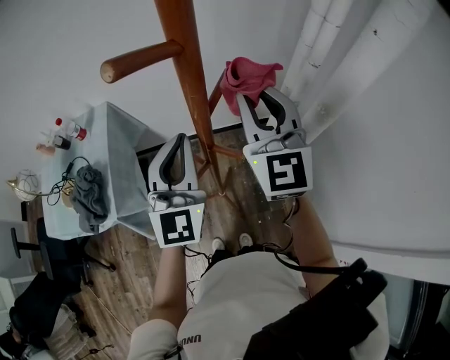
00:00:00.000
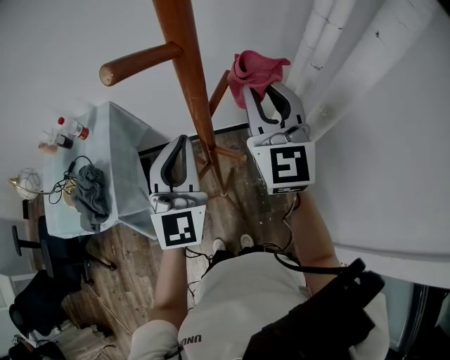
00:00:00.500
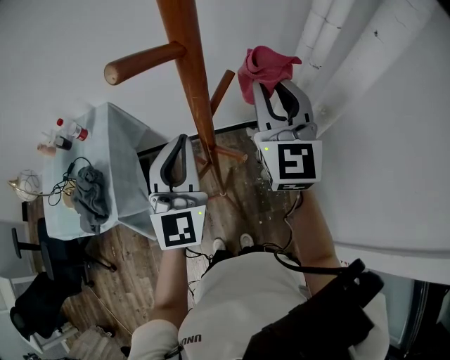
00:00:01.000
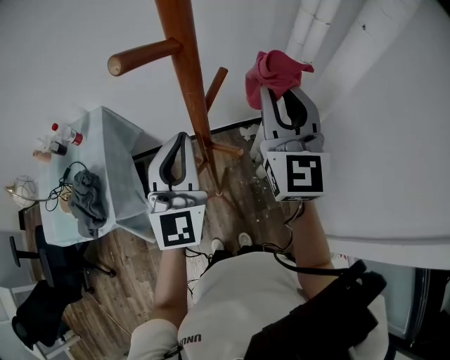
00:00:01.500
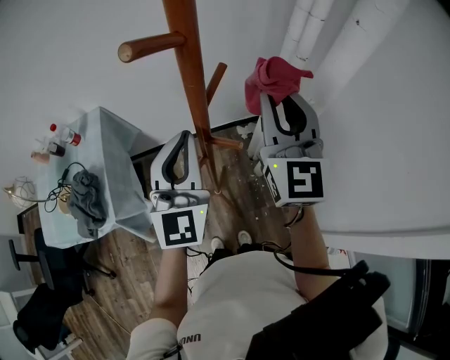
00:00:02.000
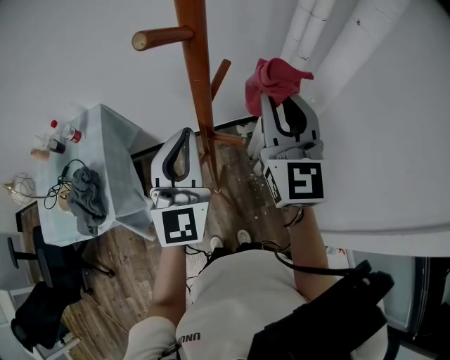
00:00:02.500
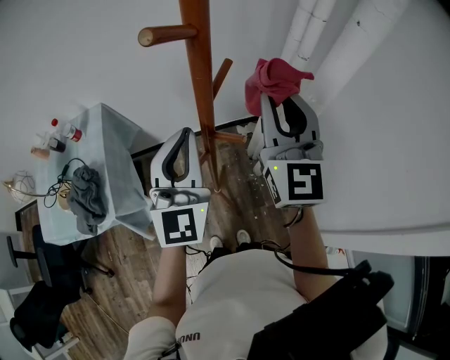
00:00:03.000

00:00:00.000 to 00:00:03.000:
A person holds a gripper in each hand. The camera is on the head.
00:00:00.000 to 00:00:01.500: The right gripper travels to the right by roughly 5 cm.
00:00:01.500 to 00:00:03.000: The grippers move only a little.

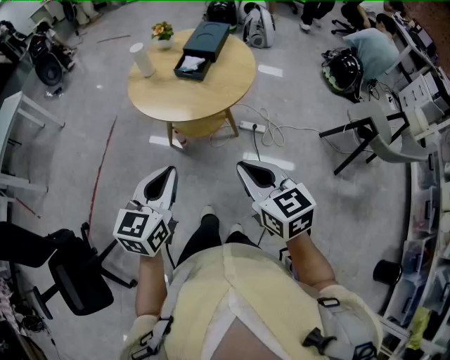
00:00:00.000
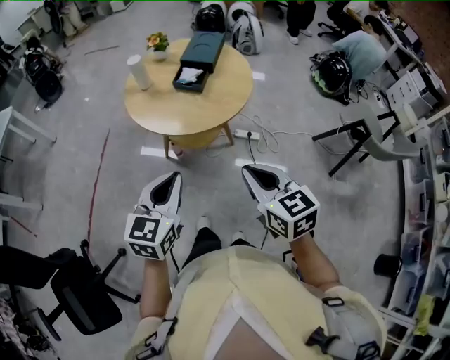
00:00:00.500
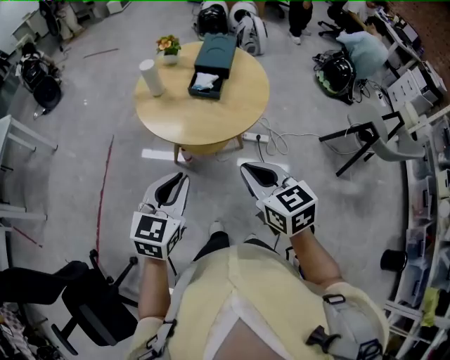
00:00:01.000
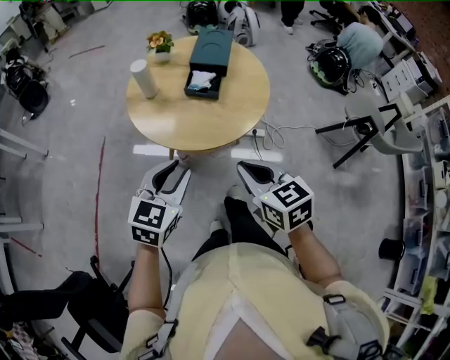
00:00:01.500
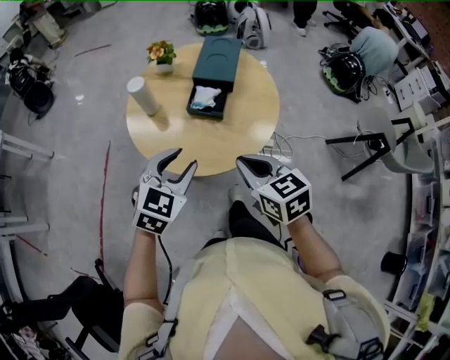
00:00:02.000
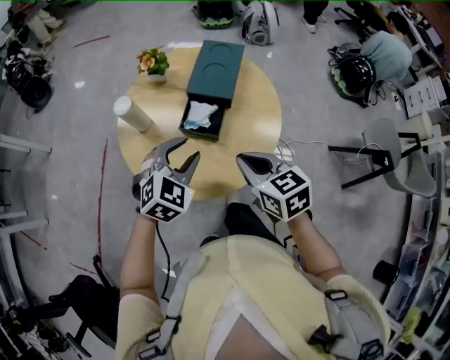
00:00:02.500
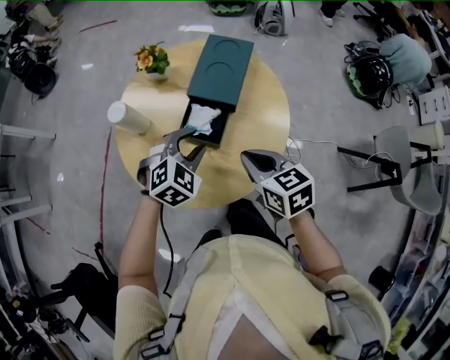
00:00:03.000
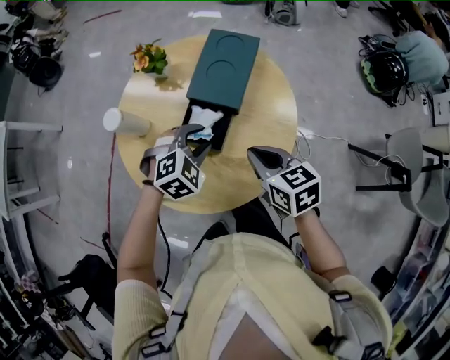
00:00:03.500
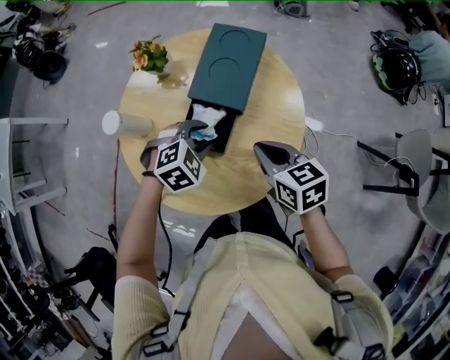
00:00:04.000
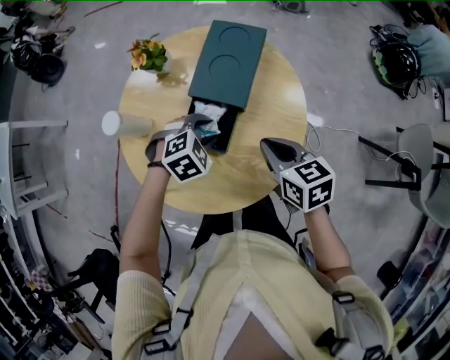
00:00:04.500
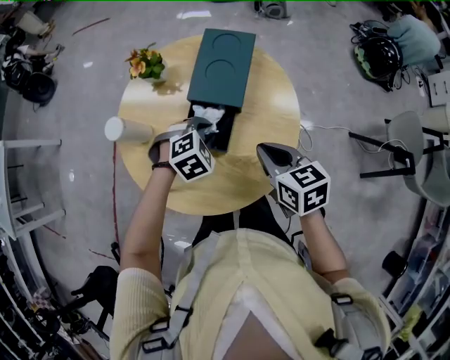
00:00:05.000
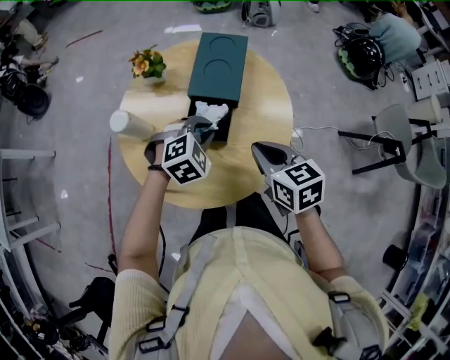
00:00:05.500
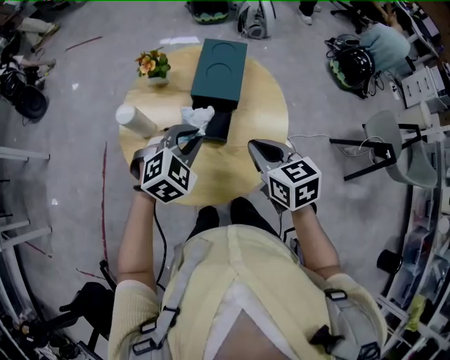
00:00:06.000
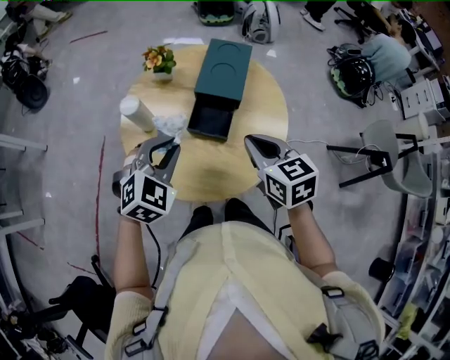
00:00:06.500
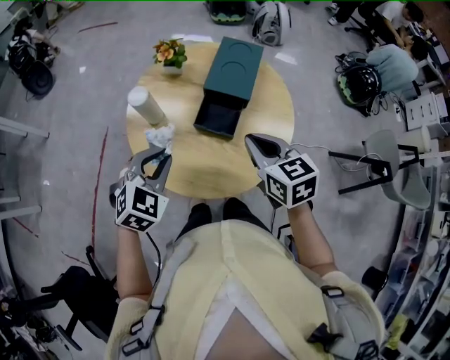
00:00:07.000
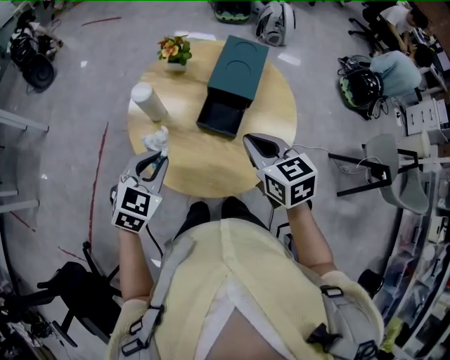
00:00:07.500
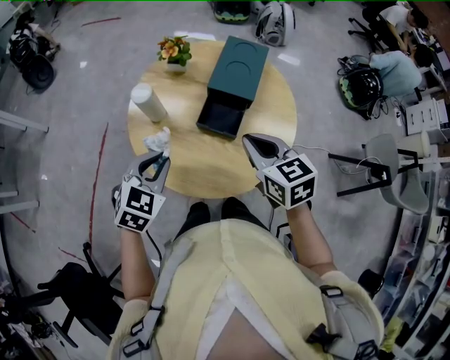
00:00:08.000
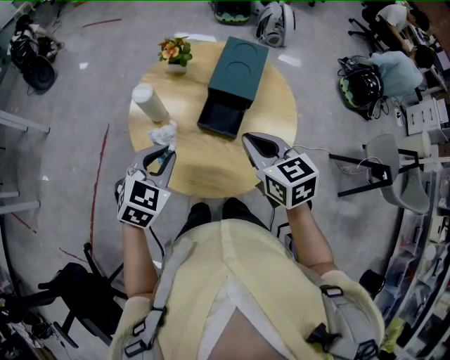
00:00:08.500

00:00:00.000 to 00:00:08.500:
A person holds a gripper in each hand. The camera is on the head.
00:00:00.000 to 00:00:02.000: The left gripper is displaced forward by roughly 25 cm, turns by approximately 30 degrees, and opens its fingers. Meanwhile the right gripper shifts roughly 25 cm forward and to the left.
00:00:02.000 to 00:00:04.000: Both grippers travel together forward, downward and to the right, some 25 cm. The left gripper tilts its fingers some 30 degrees downward.
00:00:04.000 to 00:00:06.500: The right gripper goes some 10 cm upward and backward. Meanwhile the left gripper moves upward, to the left and backward, about 20 cm, turns by some 30 degrees, and closes.
00:00:06.500 to 00:00:08.500: The left gripper changes place by about 5 cm.

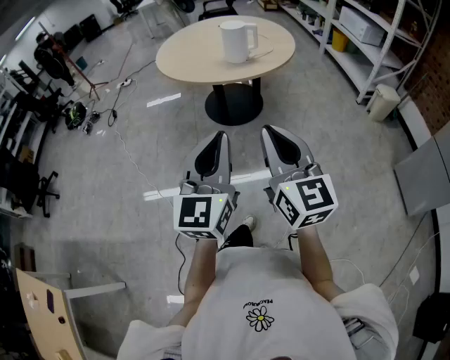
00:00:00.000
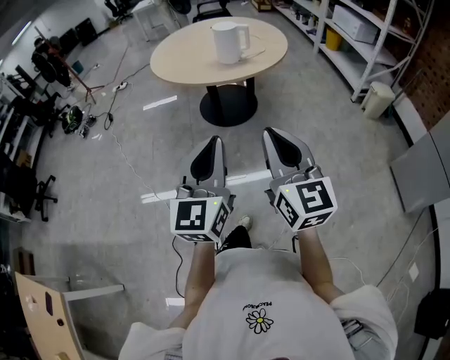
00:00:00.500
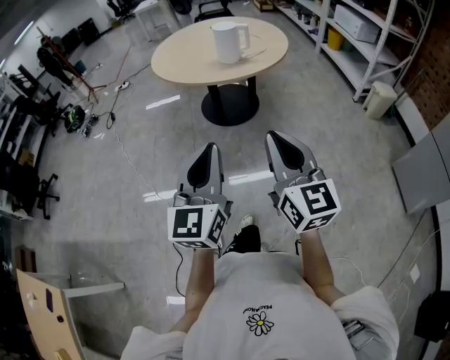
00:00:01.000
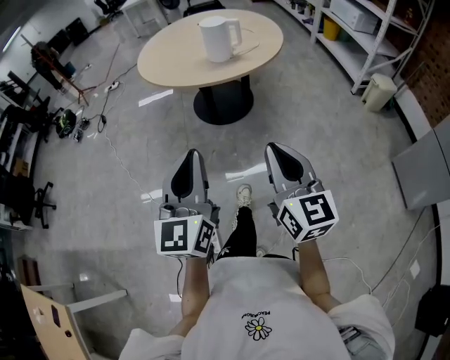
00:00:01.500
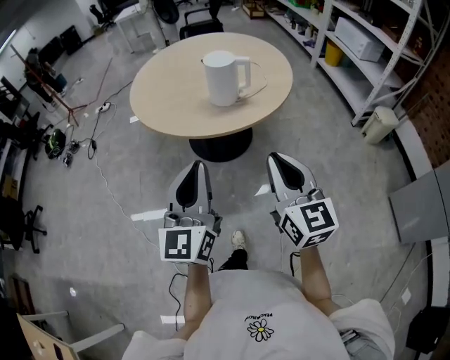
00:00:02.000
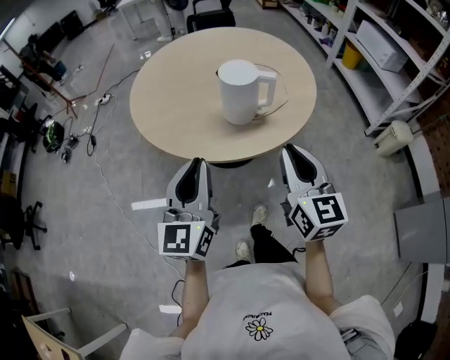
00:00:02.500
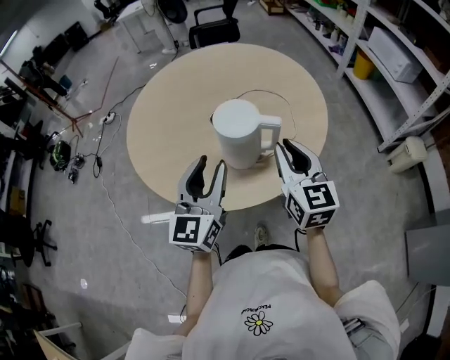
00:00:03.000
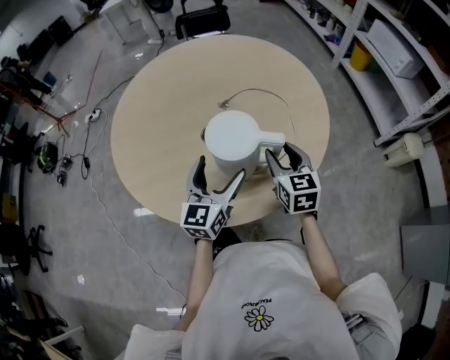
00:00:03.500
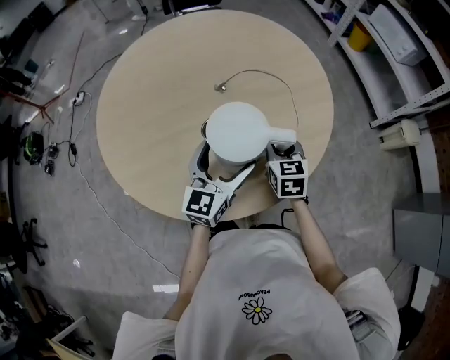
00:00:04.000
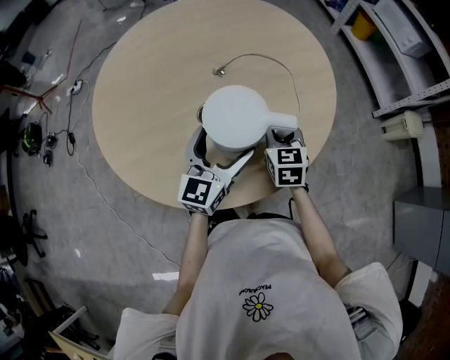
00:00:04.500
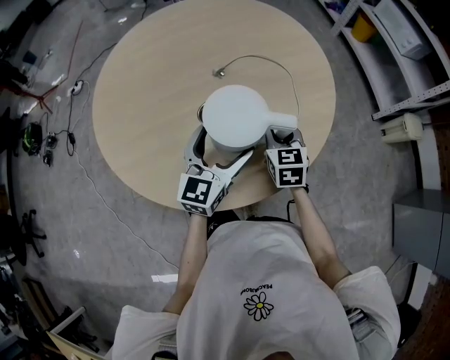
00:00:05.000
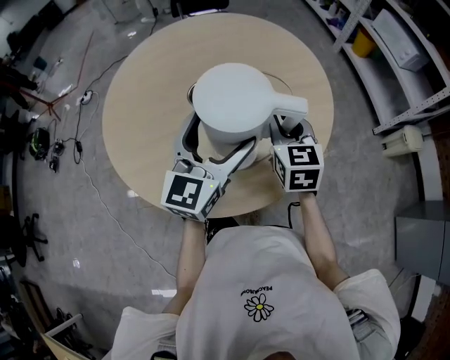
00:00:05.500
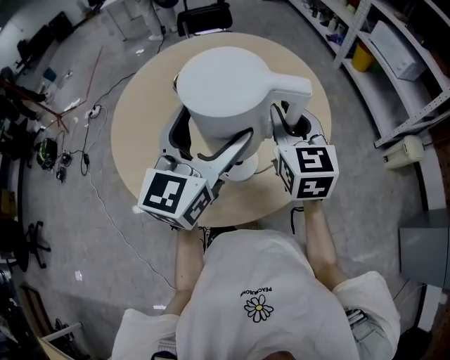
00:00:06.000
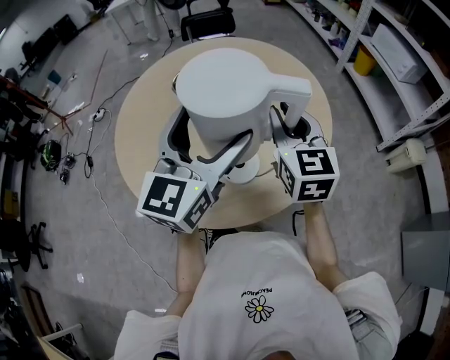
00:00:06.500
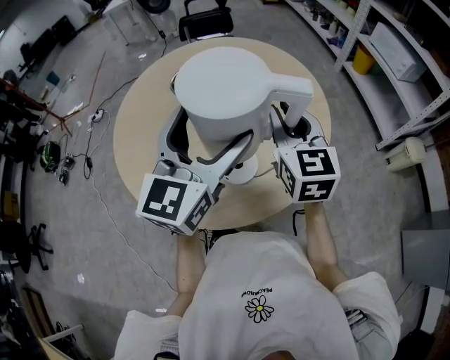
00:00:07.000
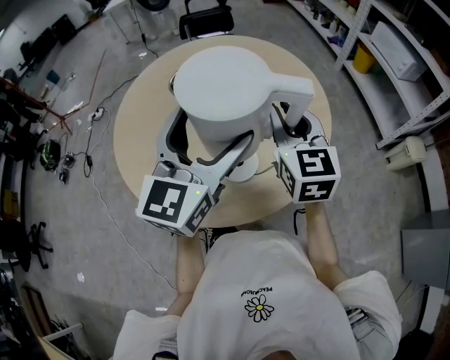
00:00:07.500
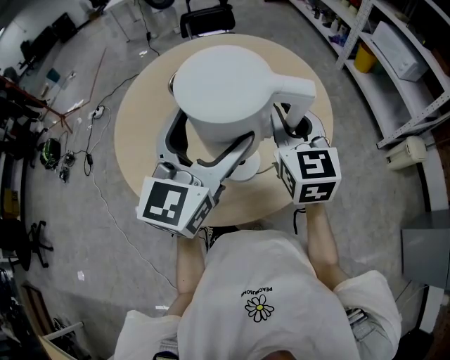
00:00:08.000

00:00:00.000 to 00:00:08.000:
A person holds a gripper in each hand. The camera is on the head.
00:00:00.000 to 00:00:02.000: The grippers both shift forward by some 30 cm.
00:00:02.000 to 00:00:04.000: The two grippers travel together, forward, about 50 cm. The left gripper rotates roughly 20 degrees, and opens its fingers; the right gripper swivels approximately 30 degrees, and opens up.
00:00:04.000 to 00:00:06.000: Both grippers travel together upward, some 20 cm. The right gripper changes its angle by some 20 degrees.
00:00:06.000 to 00:00:08.000: There are only small adjustments of the grippers.

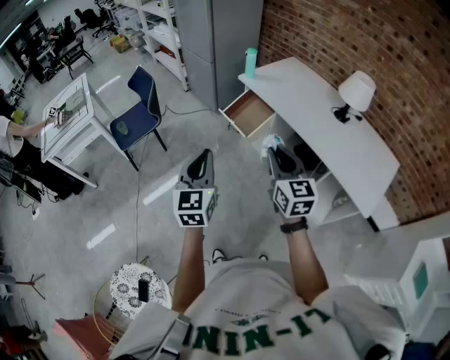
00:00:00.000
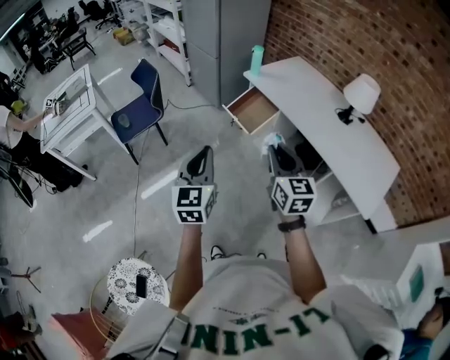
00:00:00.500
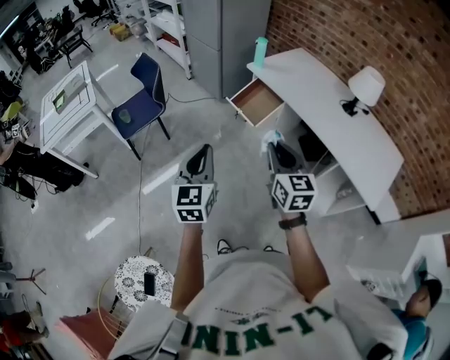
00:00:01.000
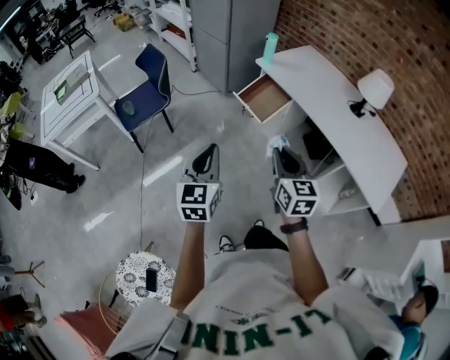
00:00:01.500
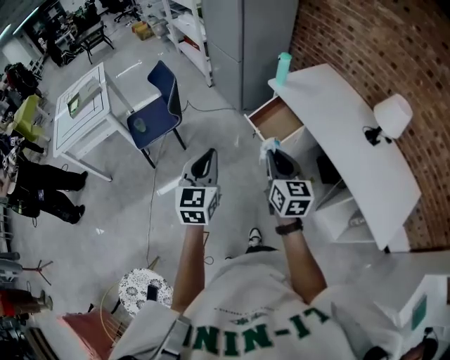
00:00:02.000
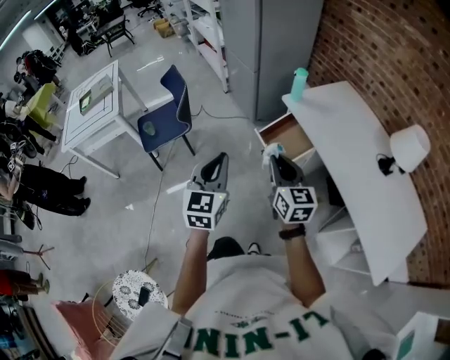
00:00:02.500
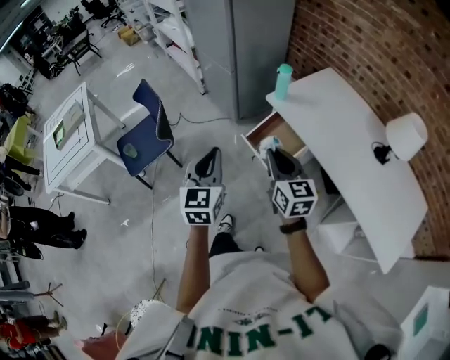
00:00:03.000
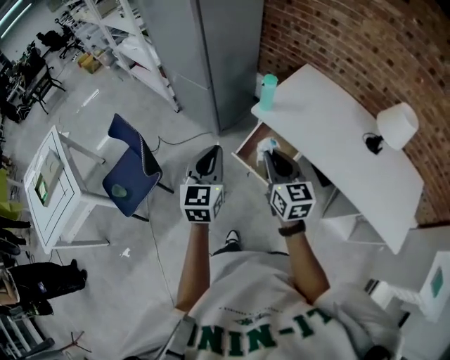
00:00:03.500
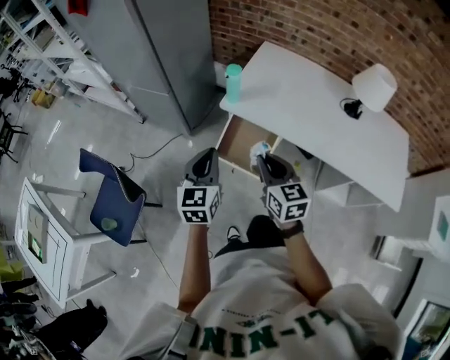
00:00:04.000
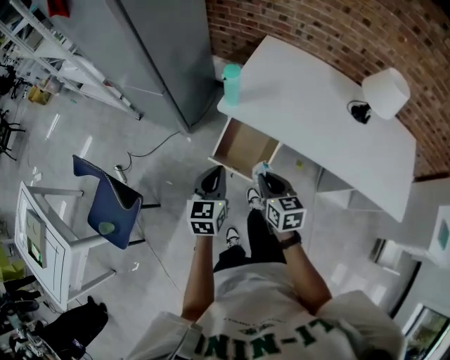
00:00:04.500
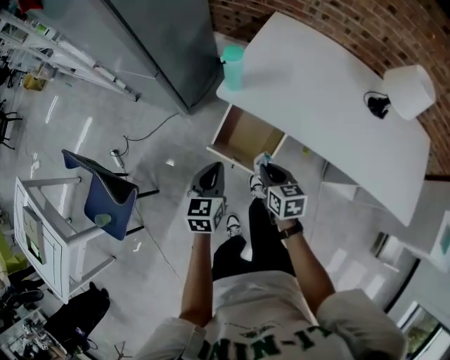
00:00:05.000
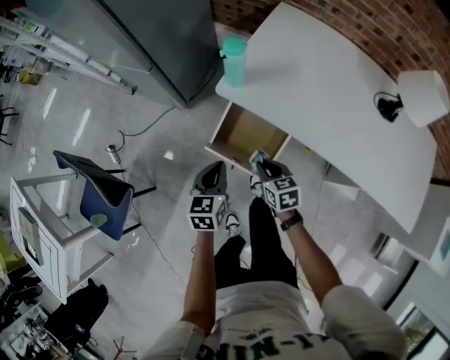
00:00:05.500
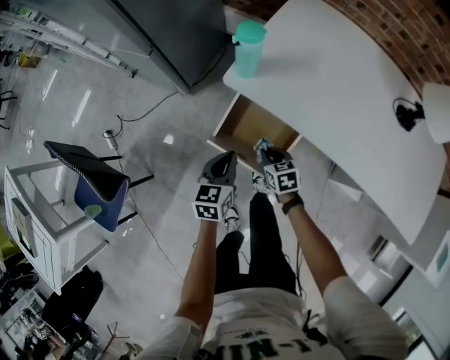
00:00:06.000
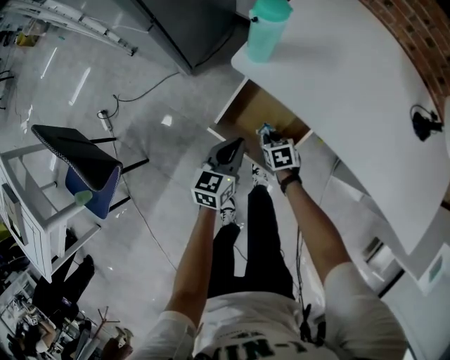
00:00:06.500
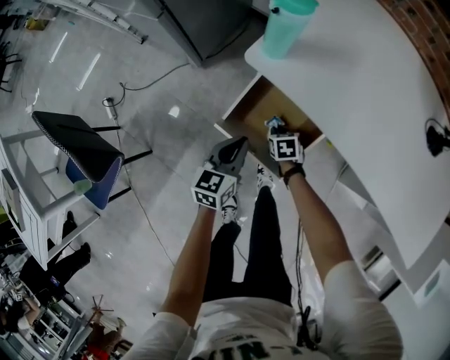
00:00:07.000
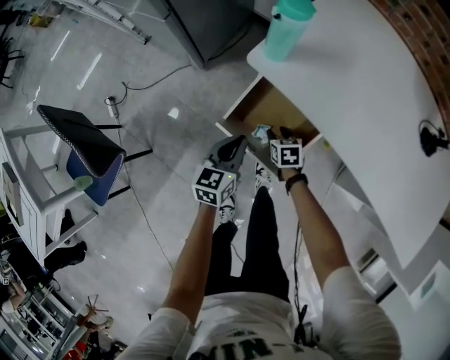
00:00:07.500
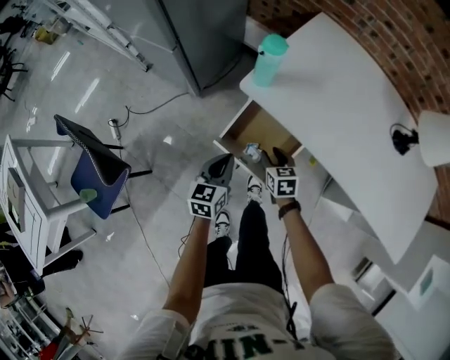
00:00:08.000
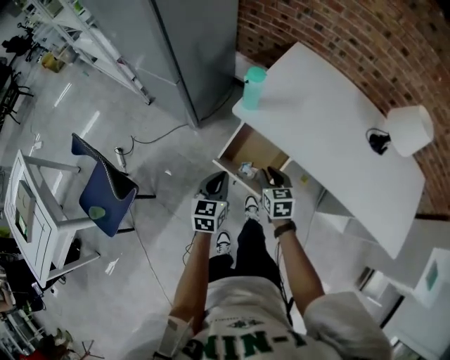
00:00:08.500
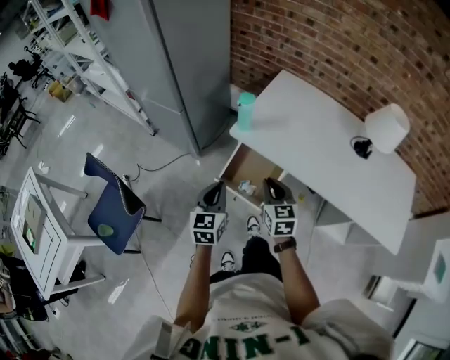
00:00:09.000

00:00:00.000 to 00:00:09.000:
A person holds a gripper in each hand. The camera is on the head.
00:00:00.000 to 00:00:02.000: Both grippers move forward and to the left, approximately 15 cm.
00:00:02.000 to 00:00:04.500: The right gripper changes place by about 35 cm, and swivels approximately 30 degrees. Meanwhile the left gripper moves approximately 50 cm, and changes its angle by approximately 40 degrees.
00:00:04.500 to 00:00:07.000: The right gripper moves downward, about 40 cm, and points its fingers roughly 40 degrees further downward, while the left gripper heads downward, covering roughly 30 cm.
00:00:07.000 to 00:00:09.000: The left gripper heads upward, covering about 30 cm. The right gripper goes some 40 cm upward, angles its fingers upward, by some 40 degrees, and opens, then closes once more.
